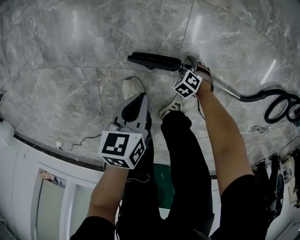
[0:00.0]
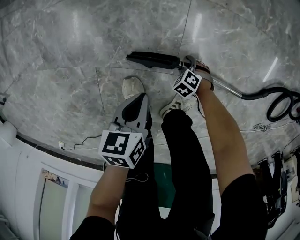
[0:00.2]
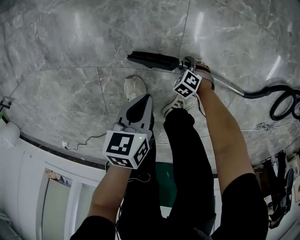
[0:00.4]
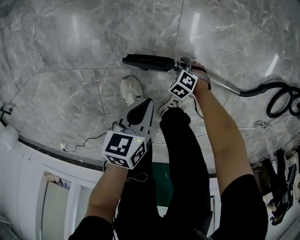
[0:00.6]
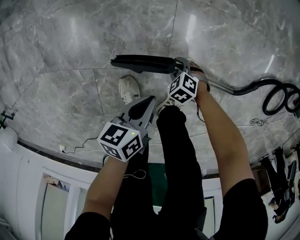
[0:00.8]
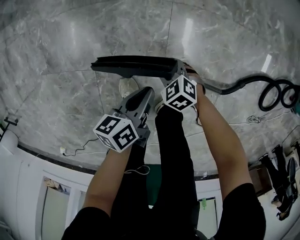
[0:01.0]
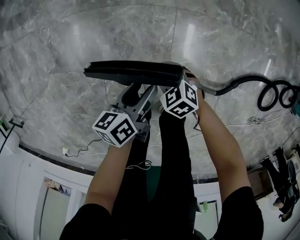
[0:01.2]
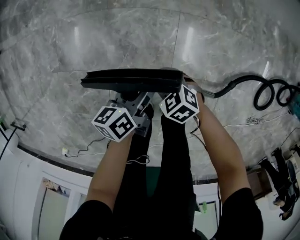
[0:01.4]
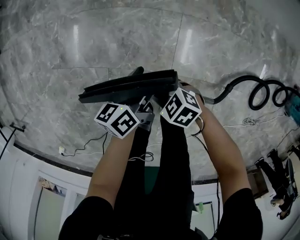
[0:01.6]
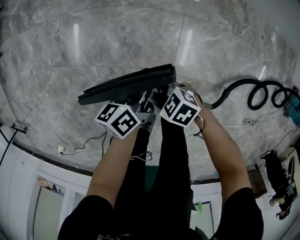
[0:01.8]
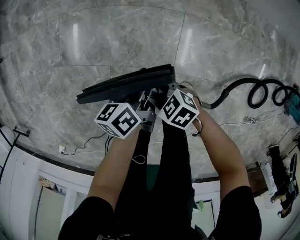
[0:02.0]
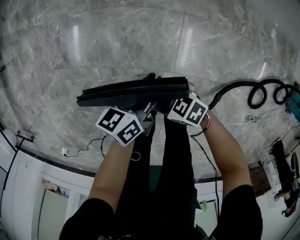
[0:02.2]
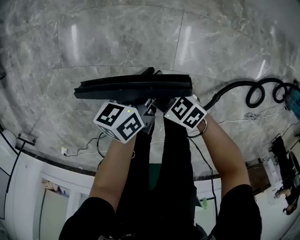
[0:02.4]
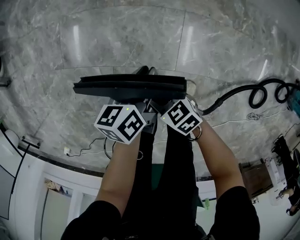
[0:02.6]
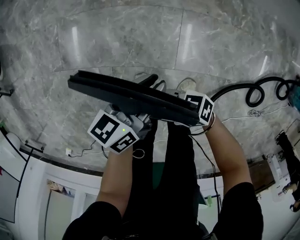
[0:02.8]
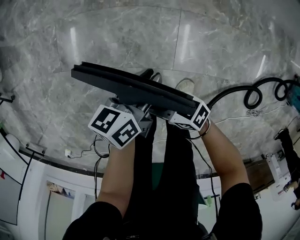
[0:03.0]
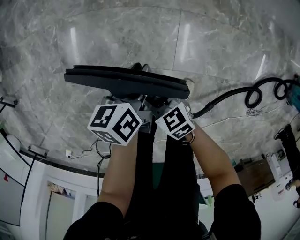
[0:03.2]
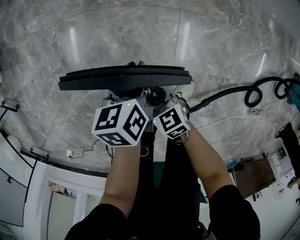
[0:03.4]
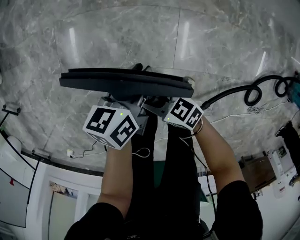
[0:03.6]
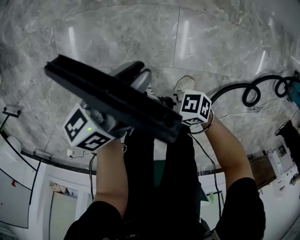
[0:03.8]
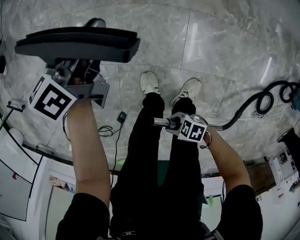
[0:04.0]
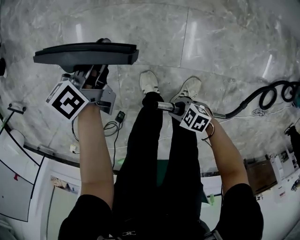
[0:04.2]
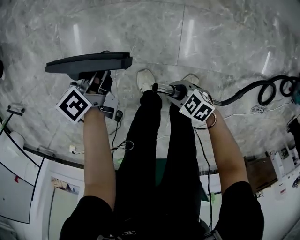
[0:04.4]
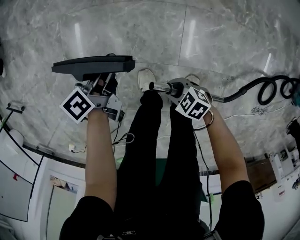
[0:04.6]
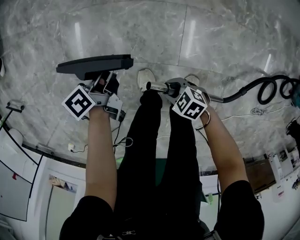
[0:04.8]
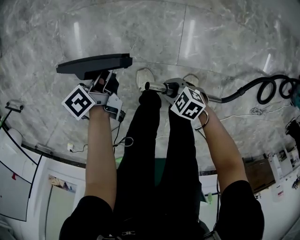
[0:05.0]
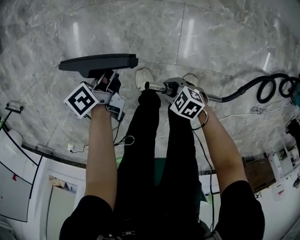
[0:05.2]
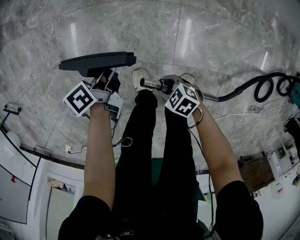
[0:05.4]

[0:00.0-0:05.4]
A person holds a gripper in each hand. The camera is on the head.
0:00.0 to 0:01.4: The left gripper goes roughly 15 cm upward, rotates some 30 degrees, and opens its fingers. The right gripper is displaced upward by some 35 cm, changes its angle by roughly 30 degrees, and closes.
0:01.4 to 0:02.8: The grippers both shift upward by about 10 cm. The left gripper swivels roughly 20 degrees, and closes up, while the right gripper points its fingers some 40 degrees further upward.
0:02.8 to 0:04.0: The right gripper ends up about 20 cm from where it was, and turns by roughly 20 degrees, while the left gripper ends up some 20 cm from where it was.
0:04.0 to 0:05.4: The right gripper changes place by some 15 cm, and swivels some 30 degrees. The left gripper travels downward by some 15 cm, and swivels roughly 40 degrees.

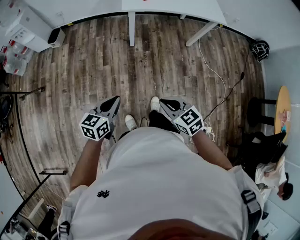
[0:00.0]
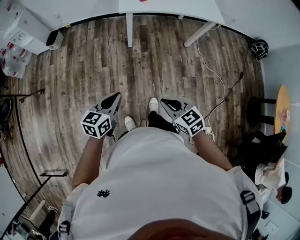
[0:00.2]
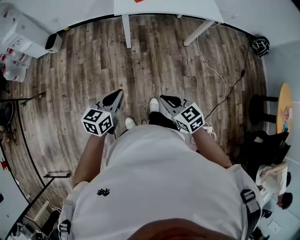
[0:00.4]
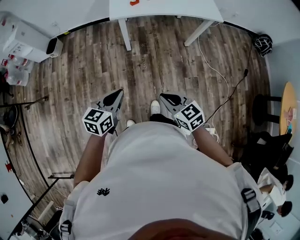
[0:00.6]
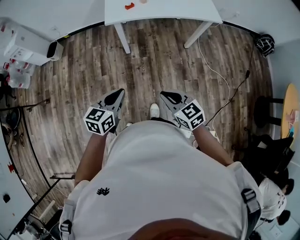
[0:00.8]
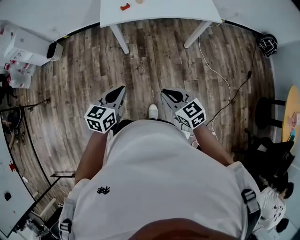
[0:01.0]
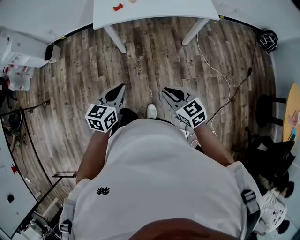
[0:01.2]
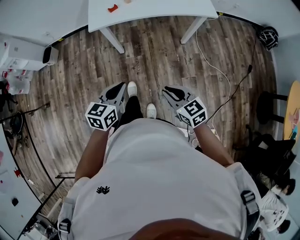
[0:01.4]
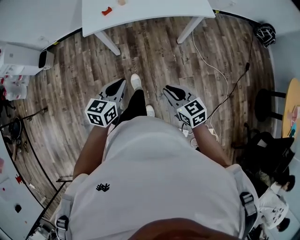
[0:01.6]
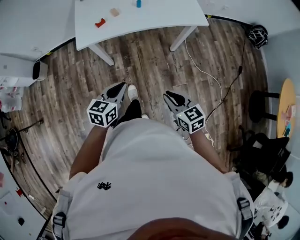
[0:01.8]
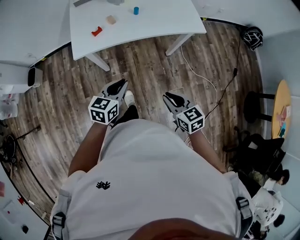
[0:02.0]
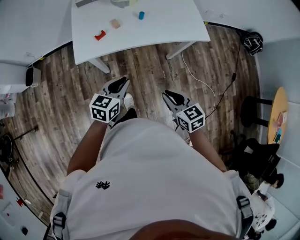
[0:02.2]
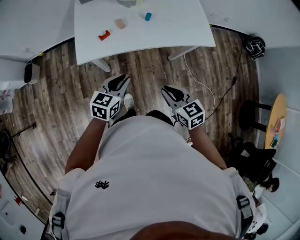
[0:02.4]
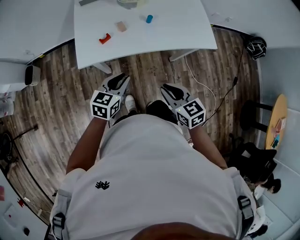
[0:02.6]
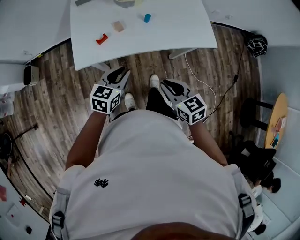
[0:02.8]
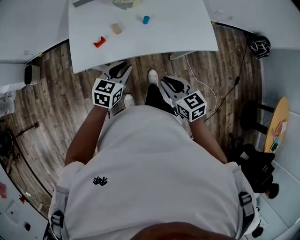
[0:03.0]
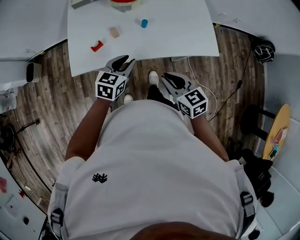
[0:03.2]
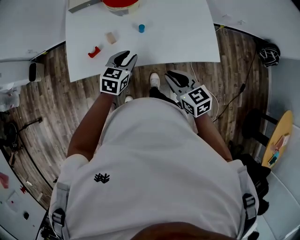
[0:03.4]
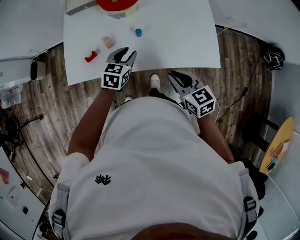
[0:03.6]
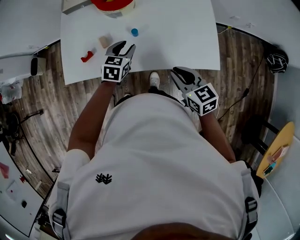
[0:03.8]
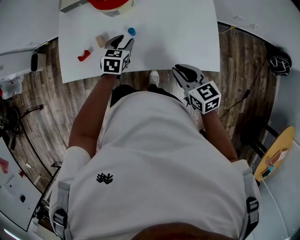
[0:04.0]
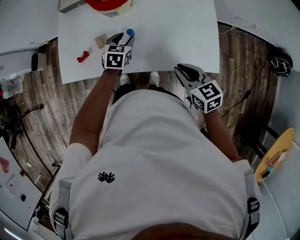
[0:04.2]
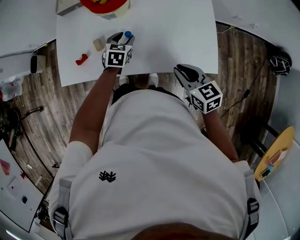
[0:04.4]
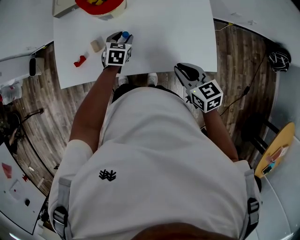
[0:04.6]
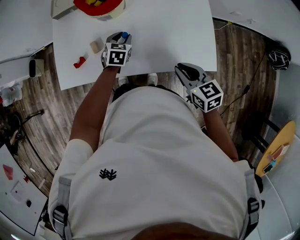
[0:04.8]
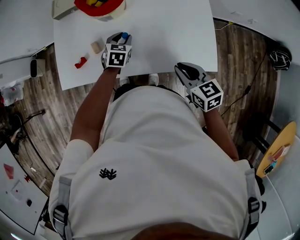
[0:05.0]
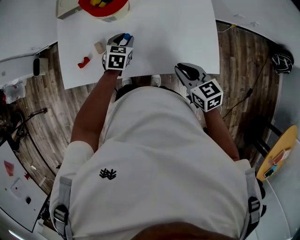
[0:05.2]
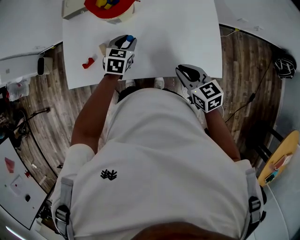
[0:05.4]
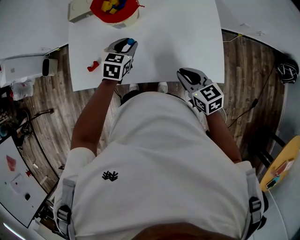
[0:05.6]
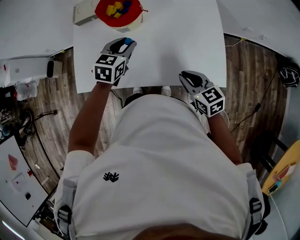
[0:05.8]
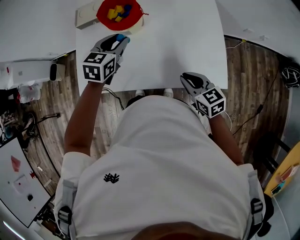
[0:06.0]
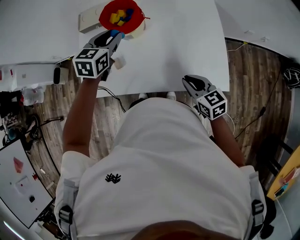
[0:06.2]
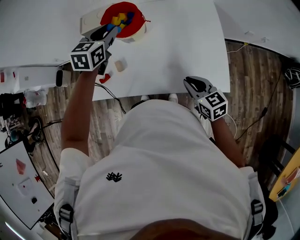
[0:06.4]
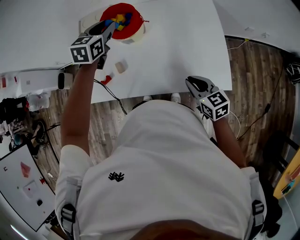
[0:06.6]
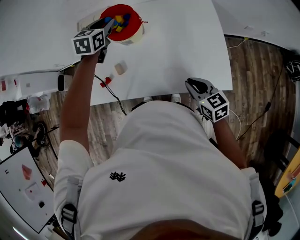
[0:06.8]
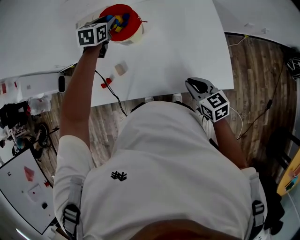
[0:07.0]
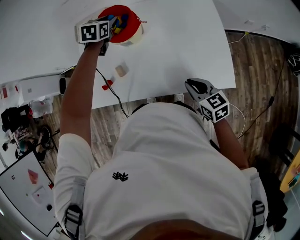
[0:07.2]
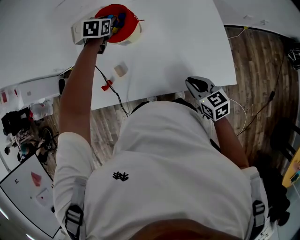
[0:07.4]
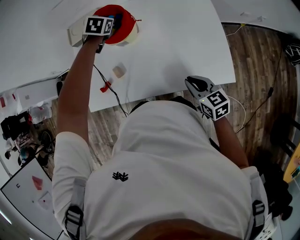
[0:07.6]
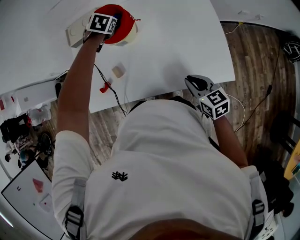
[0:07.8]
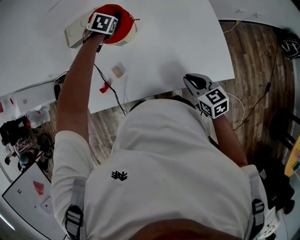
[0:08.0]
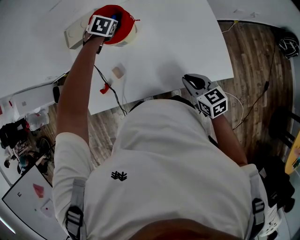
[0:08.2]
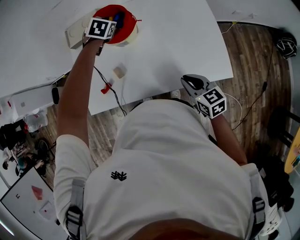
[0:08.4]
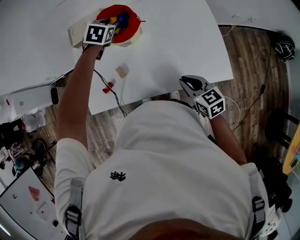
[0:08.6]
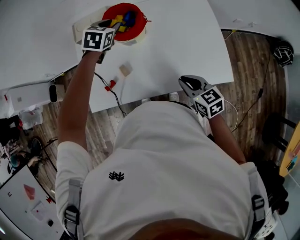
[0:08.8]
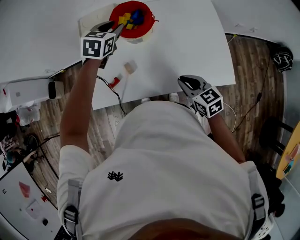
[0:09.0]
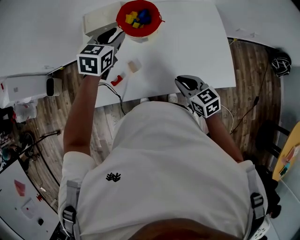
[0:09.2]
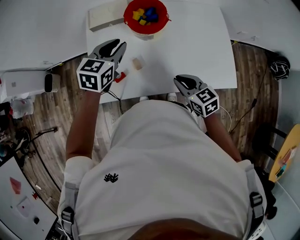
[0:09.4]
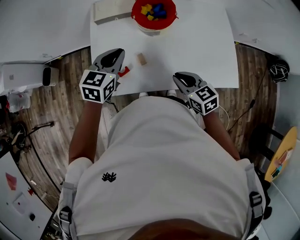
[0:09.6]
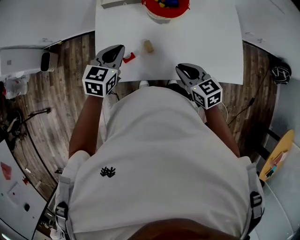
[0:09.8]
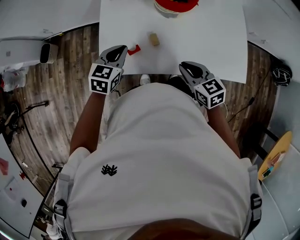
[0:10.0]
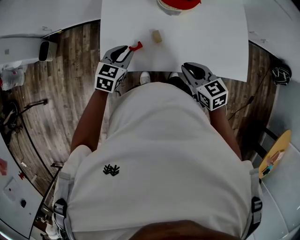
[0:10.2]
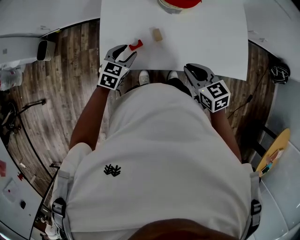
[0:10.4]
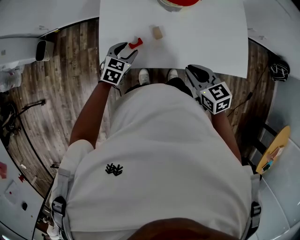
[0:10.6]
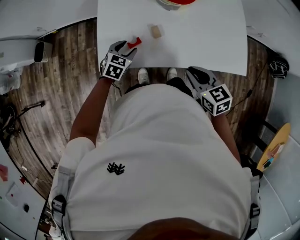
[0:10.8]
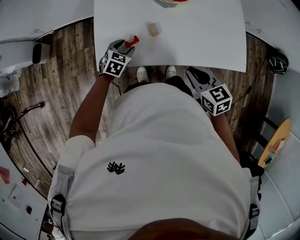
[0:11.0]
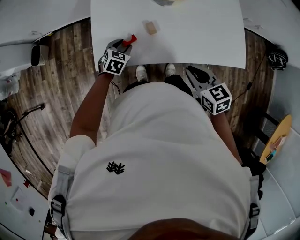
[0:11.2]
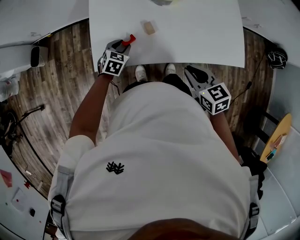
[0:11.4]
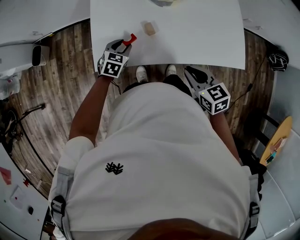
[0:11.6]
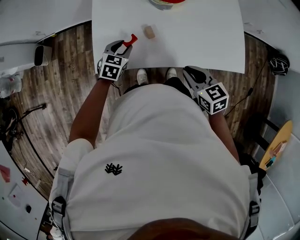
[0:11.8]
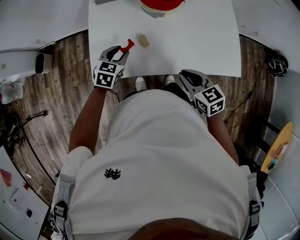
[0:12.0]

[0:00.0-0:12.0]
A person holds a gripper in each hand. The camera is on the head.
0:00.0 to 0:01.6: Both grippers travel together to the right and forward, about 30 cm.
0:01.6 to 0:03.0: The two grippers go approximately 30 cm forward.
0:03.0 to 0:04.4: The right gripper goes about 25 cm to the right and forward; the left gripper travels forward, to the right and downward by roughly 25 cm, and swivels roughly 30 degrees.
0:04.4 to 0:06.0: The left gripper travels upward by some 15 cm.
0:06.0 to 0:07.6: The left gripper travels forward by roughly 20 cm, and rotates approximately 30 degrees.
0:07.6 to 0:09.0: The left gripper travels upward, backward and to the left by roughly 15 cm, and rotates about 20 degrees; the right gripper is displaced to the left by approximately 10 cm.
0:09.0 to 0:10.4: The right gripper travels to the left by about 10 cm. Meanwhile the left gripper goes roughly 30 cm backward, downward and to the left, and closes, then opens again.
0:10.4 to 0:12.0: The left gripper travels downward and back again, some 10 cm each way.

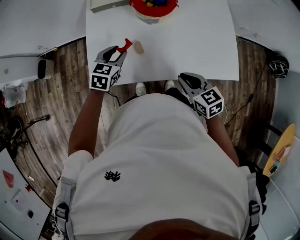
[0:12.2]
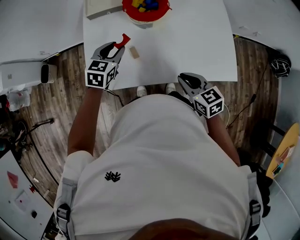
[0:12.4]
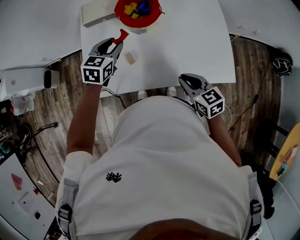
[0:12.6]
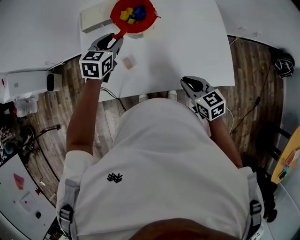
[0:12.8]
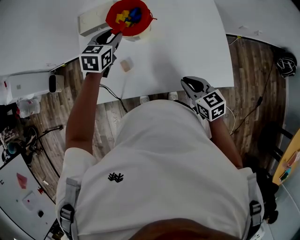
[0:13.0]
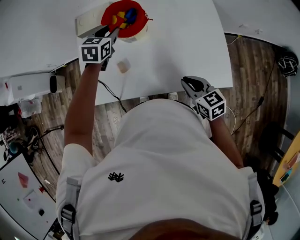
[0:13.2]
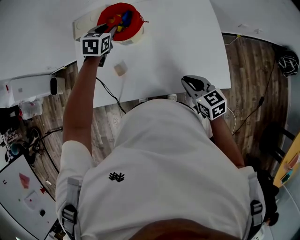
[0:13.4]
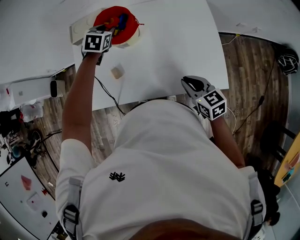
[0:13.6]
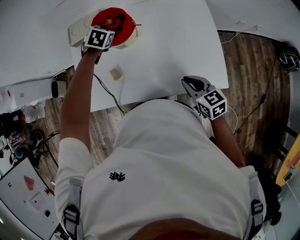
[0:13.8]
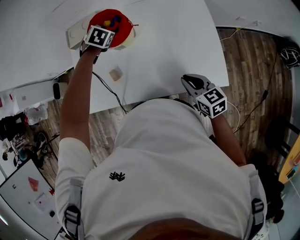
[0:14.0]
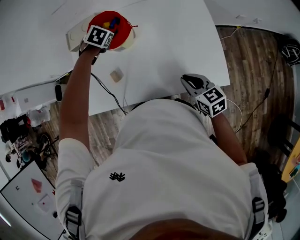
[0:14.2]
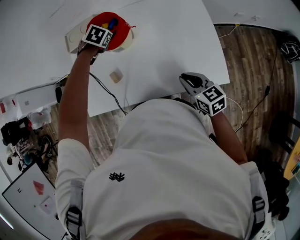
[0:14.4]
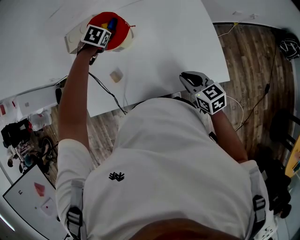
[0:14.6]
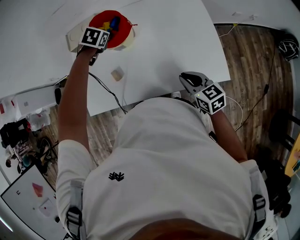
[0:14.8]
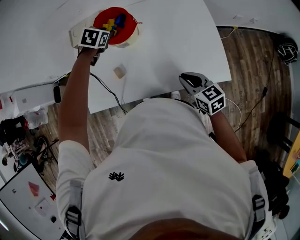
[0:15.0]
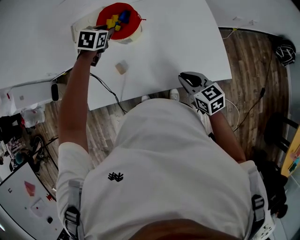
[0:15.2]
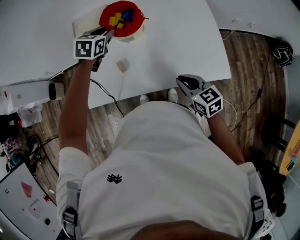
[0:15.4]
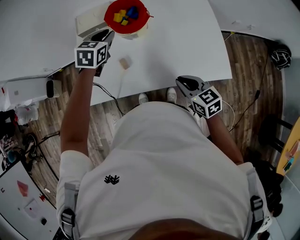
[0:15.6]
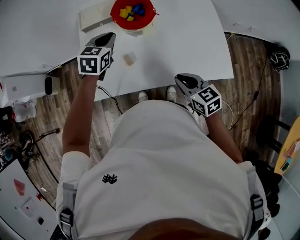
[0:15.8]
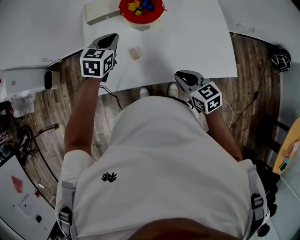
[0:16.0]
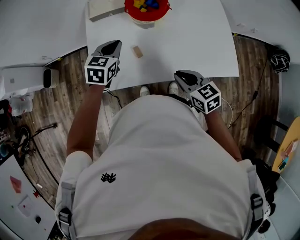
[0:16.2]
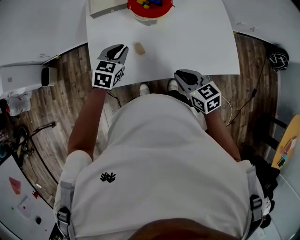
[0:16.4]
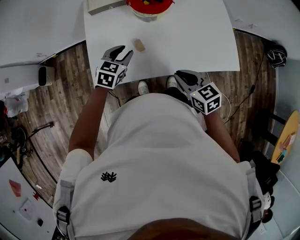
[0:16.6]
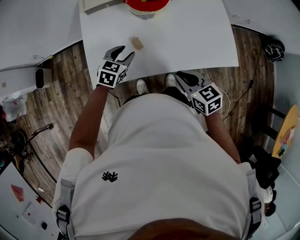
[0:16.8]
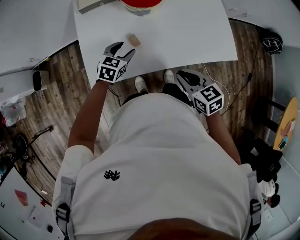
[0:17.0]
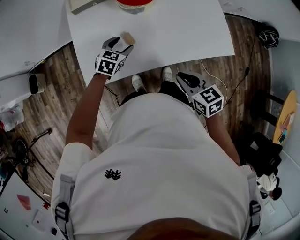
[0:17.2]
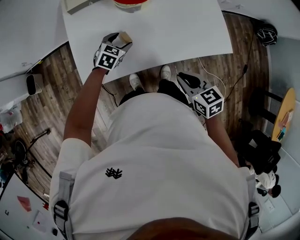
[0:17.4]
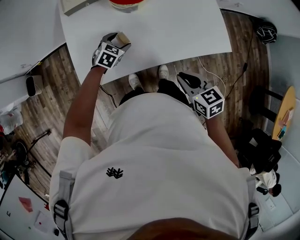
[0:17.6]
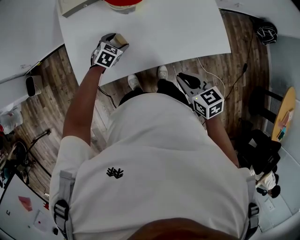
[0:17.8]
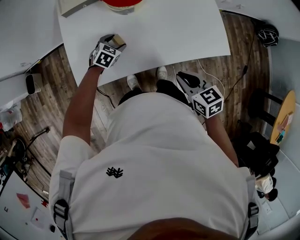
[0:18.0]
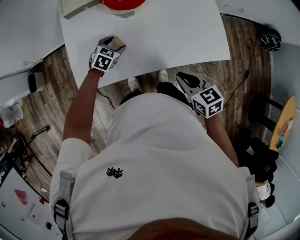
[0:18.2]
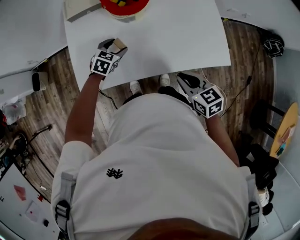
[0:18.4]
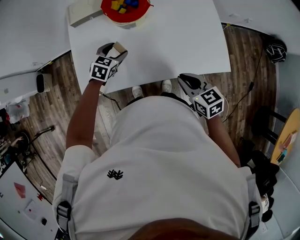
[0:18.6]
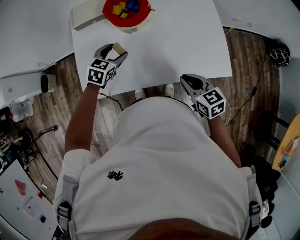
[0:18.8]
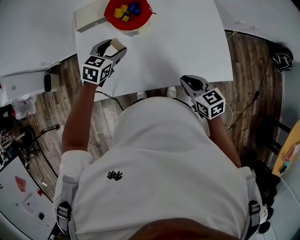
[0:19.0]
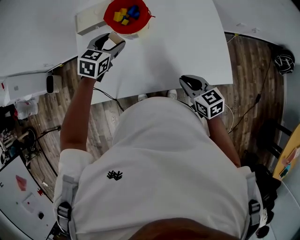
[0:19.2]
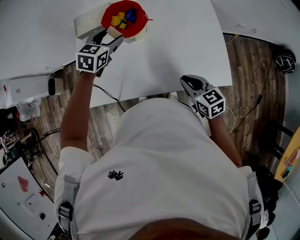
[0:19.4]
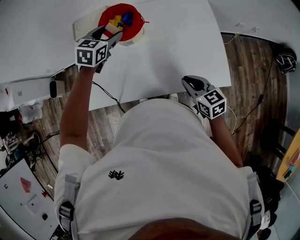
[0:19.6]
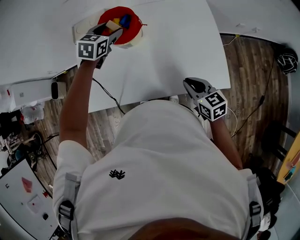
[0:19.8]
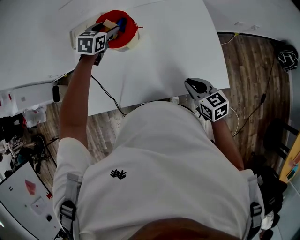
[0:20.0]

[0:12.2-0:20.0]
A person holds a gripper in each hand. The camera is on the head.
0:12.2 to 0:13.8: The left gripper heads forward and to the right, covering about 25 cm, and swivels about 30 degrees; the right gripper goes approximately 15 cm to the right.
0:13.8 to 0:15.4: The right gripper is displaced to the left by some 5 cm; the left gripper is displaced upward and backward by approximately 10 cm, and turns by about 20 degrees.
0:15.4 to 0:16.8: The right gripper shifts roughly 10 cm to the left. Meanwhile the left gripper moves backward, downward and to the left, about 20 cm, and closes, then opens again.
0:16.8 to 0:18.4: The left gripper heads forward, covering approximately 5 cm. The right gripper shifts about 10 cm to the right.
0:18.4 to 0:20.0: The right gripper heads to the right and forward, covering some 10 cm; the left gripper heads forward and upward, covering roughly 25 cm.
